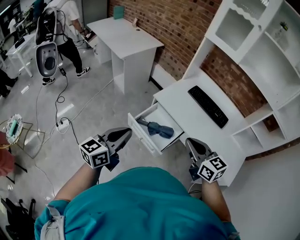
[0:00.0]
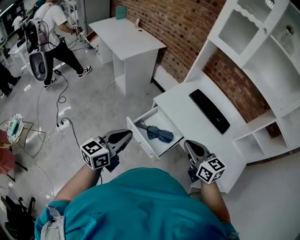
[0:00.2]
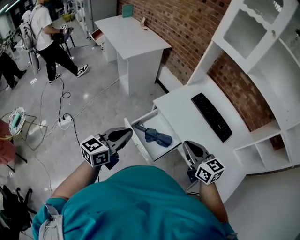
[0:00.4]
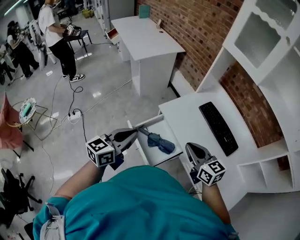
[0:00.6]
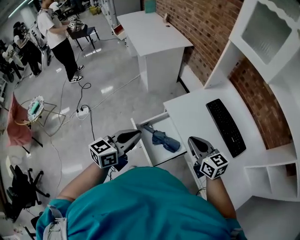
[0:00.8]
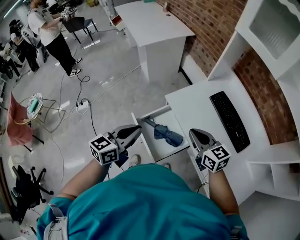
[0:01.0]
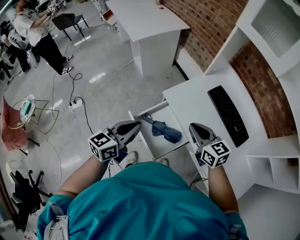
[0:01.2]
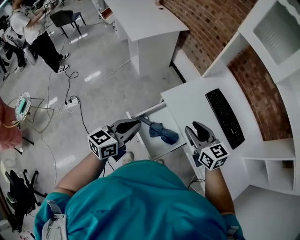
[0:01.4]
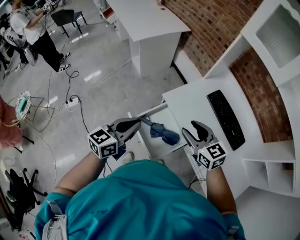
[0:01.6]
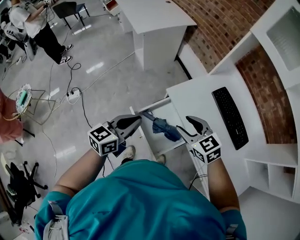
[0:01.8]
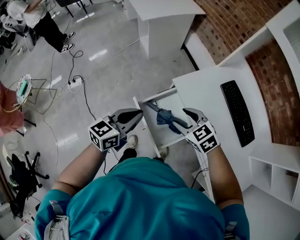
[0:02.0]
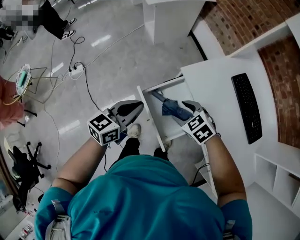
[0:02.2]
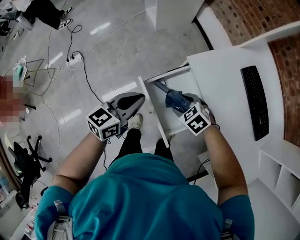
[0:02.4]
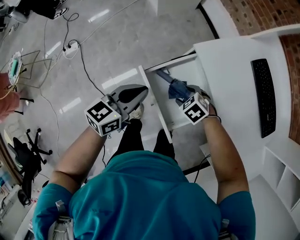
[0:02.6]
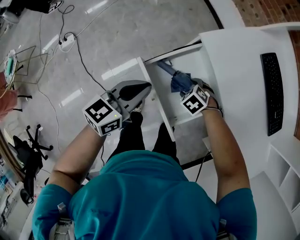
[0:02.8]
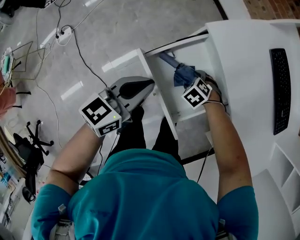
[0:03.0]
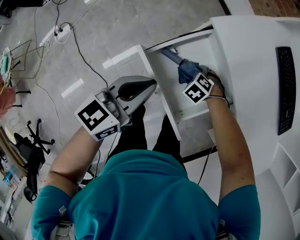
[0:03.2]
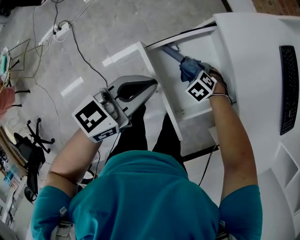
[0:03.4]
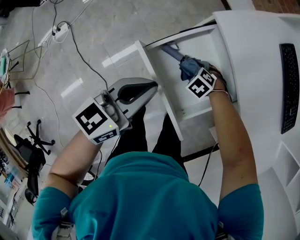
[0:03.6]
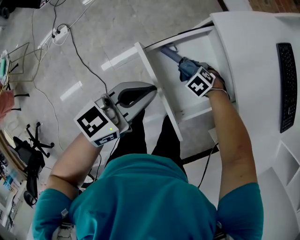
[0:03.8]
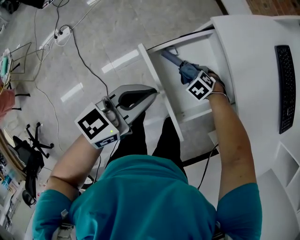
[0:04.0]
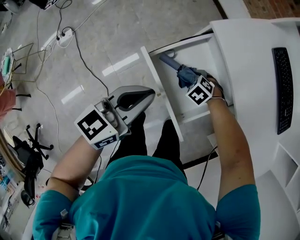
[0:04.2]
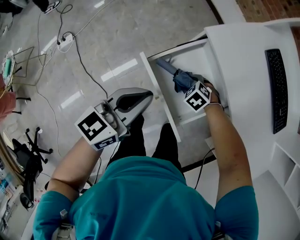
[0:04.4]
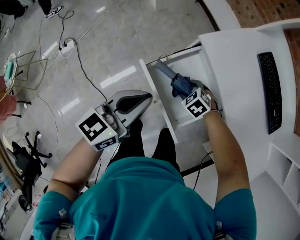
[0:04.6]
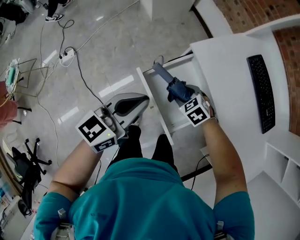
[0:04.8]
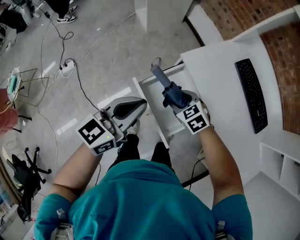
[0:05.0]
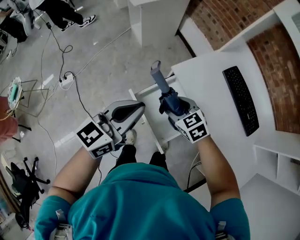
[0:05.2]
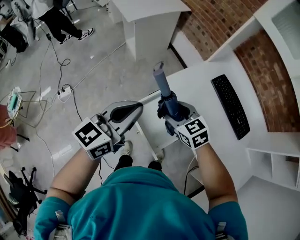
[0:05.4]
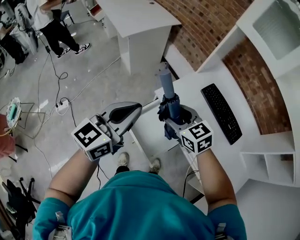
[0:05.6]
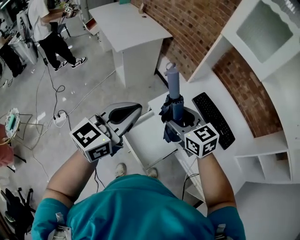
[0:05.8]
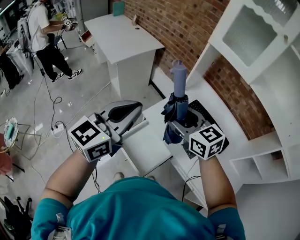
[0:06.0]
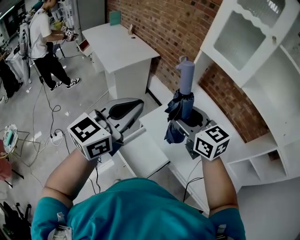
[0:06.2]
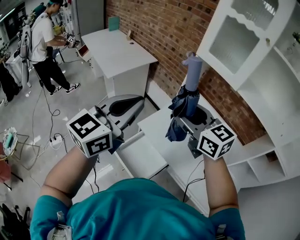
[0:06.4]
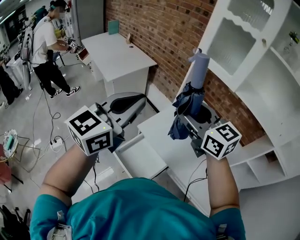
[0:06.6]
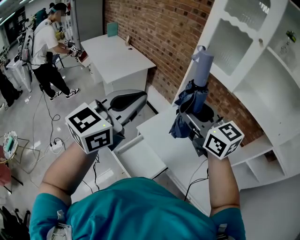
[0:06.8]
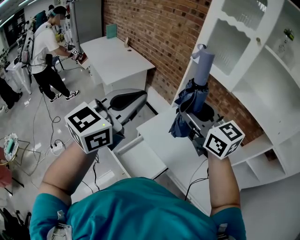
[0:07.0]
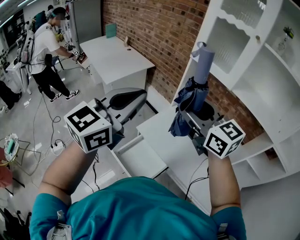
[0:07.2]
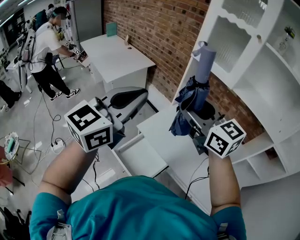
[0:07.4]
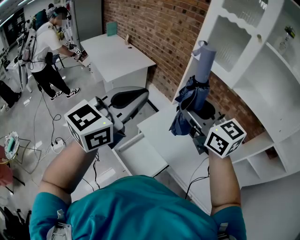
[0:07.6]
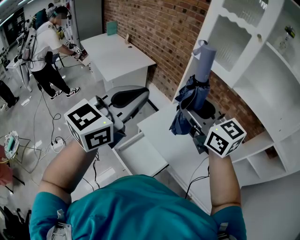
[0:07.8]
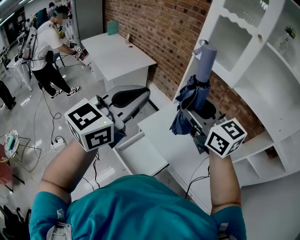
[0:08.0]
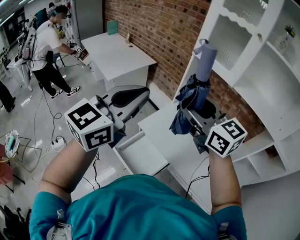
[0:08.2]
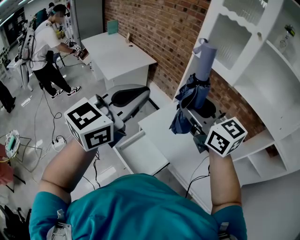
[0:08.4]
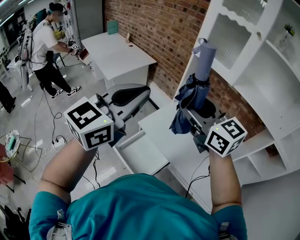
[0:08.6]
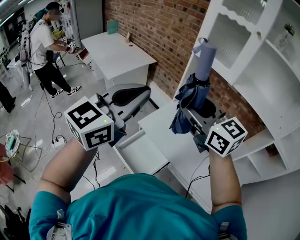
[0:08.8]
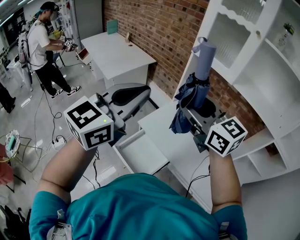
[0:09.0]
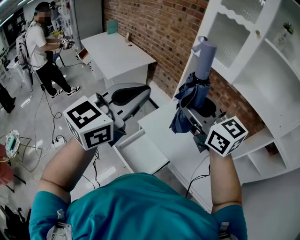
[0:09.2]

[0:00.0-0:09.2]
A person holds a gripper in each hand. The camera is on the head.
0:00.0 to 0:01.6: The left gripper heads forward, to the right and downward, covering about 20 cm; the right gripper shifts about 20 cm forward, changes its angle by about 20 degrees, and opens its fingers.
0:01.6 to 0:03.0: The right gripper heads downward, covering about 40 cm, and angles its fingers downward, by roughly 60 degrees, while the left gripper moves downward, about 20 cm.
0:03.0 to 0:04.6: The two grippers go some 5 cm upward.
0:04.6 to 0:06.2: The grippers both shift upward by some 50 cm. The left gripper turns by some 30 degrees; the right gripper points its fingers about 60 degrees further upward.
0:06.2 to 0:07.6: The two grippers go about 10 cm upward.
0:07.6 to 0:09.2: The two grippers keep their place.

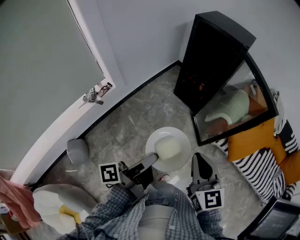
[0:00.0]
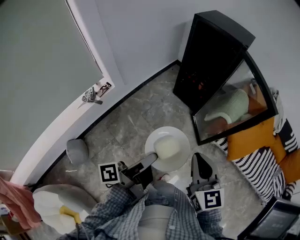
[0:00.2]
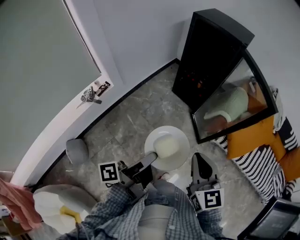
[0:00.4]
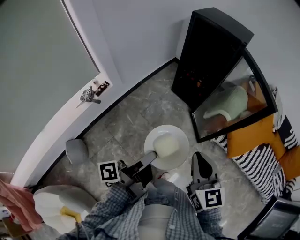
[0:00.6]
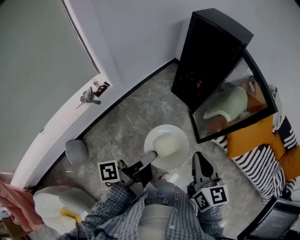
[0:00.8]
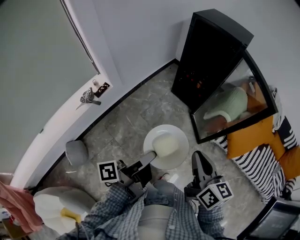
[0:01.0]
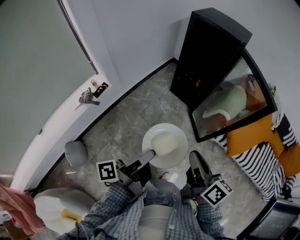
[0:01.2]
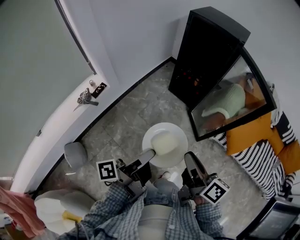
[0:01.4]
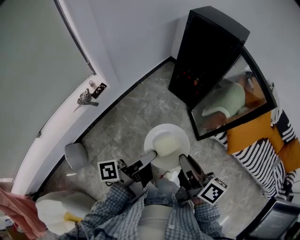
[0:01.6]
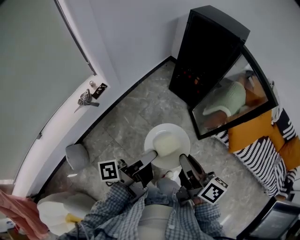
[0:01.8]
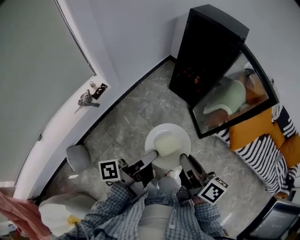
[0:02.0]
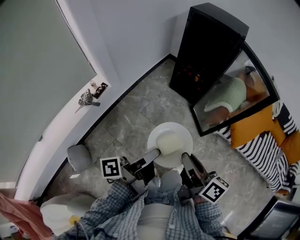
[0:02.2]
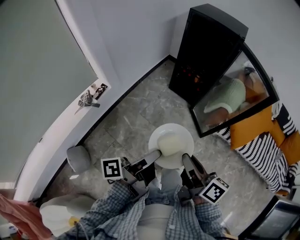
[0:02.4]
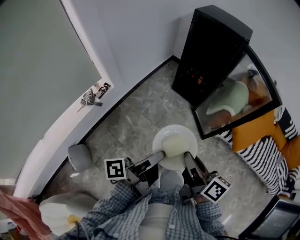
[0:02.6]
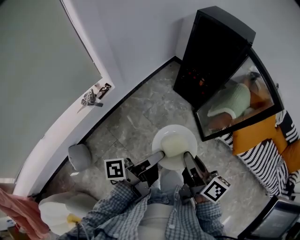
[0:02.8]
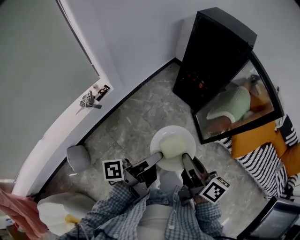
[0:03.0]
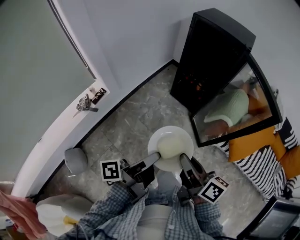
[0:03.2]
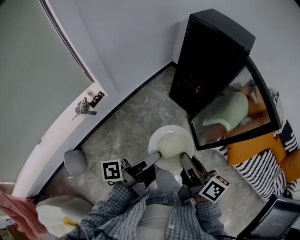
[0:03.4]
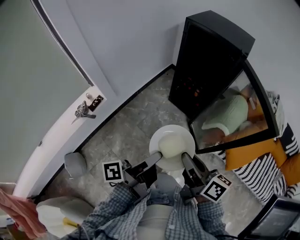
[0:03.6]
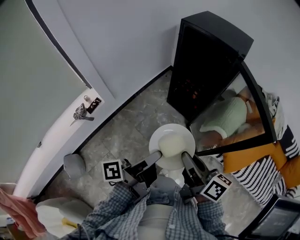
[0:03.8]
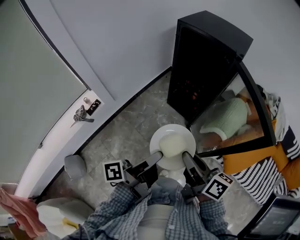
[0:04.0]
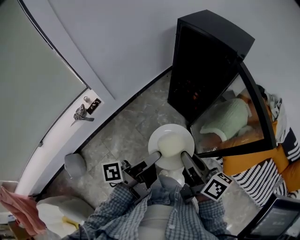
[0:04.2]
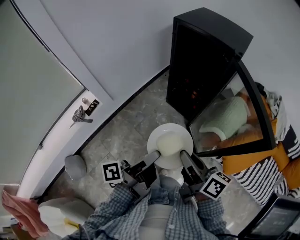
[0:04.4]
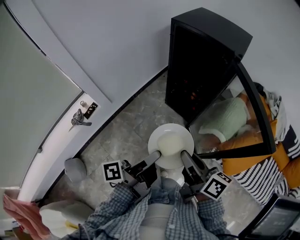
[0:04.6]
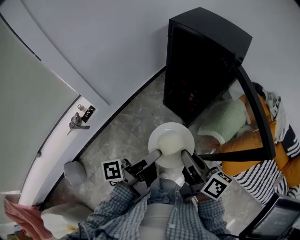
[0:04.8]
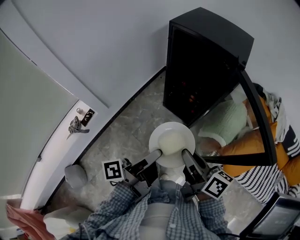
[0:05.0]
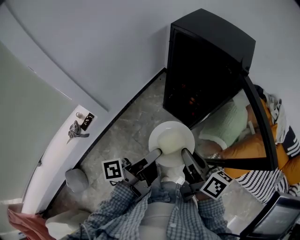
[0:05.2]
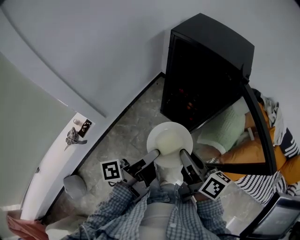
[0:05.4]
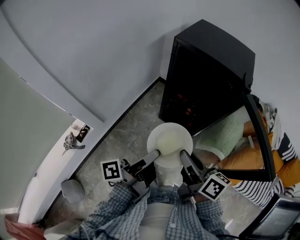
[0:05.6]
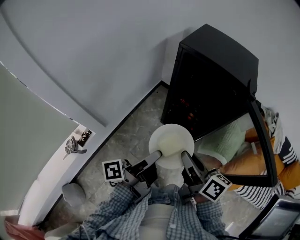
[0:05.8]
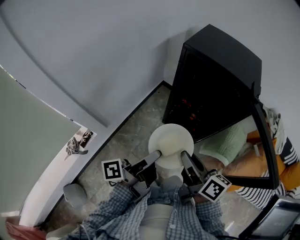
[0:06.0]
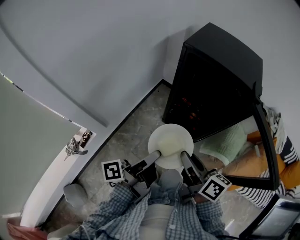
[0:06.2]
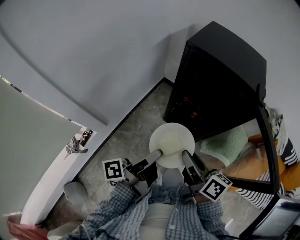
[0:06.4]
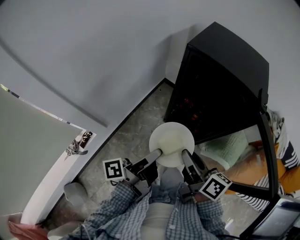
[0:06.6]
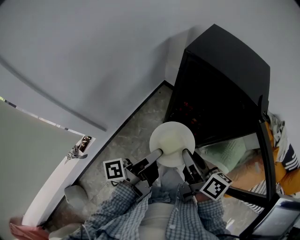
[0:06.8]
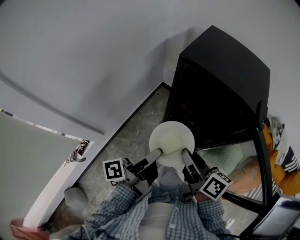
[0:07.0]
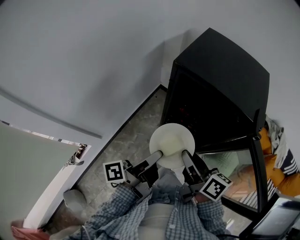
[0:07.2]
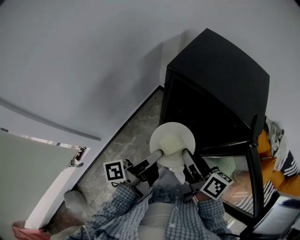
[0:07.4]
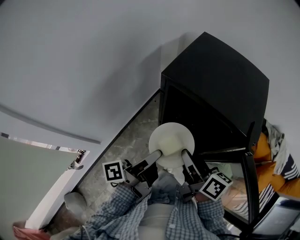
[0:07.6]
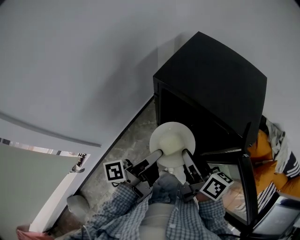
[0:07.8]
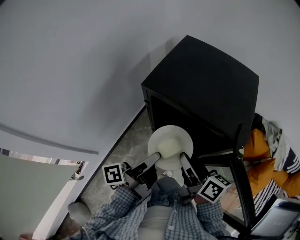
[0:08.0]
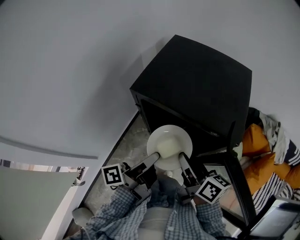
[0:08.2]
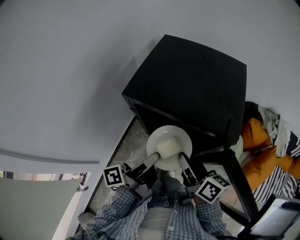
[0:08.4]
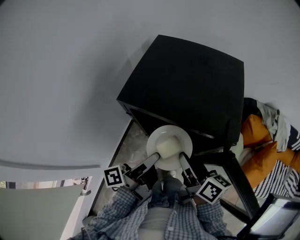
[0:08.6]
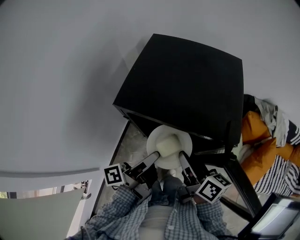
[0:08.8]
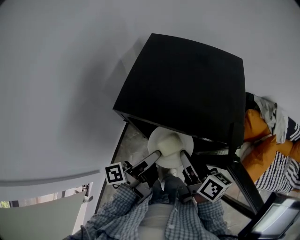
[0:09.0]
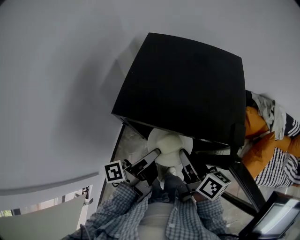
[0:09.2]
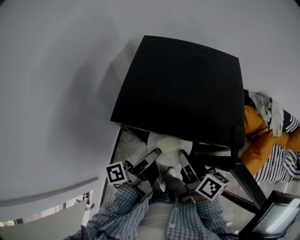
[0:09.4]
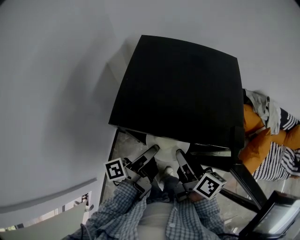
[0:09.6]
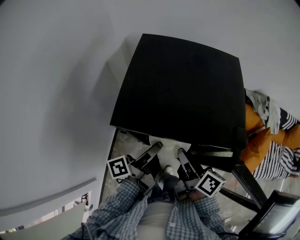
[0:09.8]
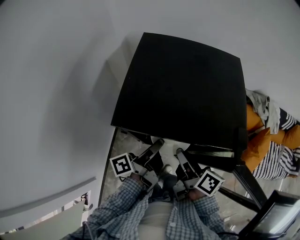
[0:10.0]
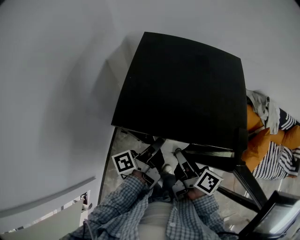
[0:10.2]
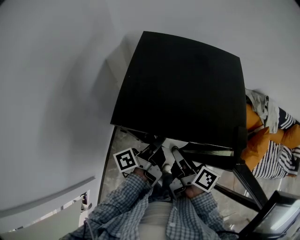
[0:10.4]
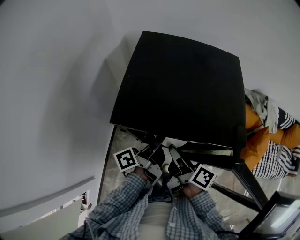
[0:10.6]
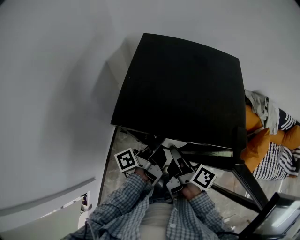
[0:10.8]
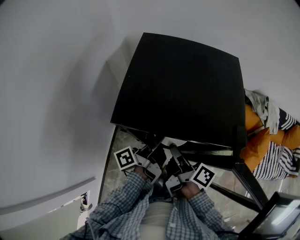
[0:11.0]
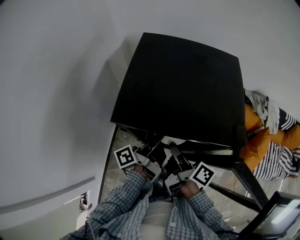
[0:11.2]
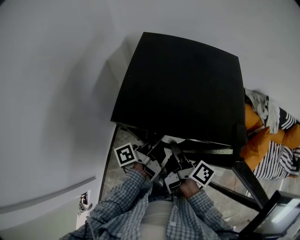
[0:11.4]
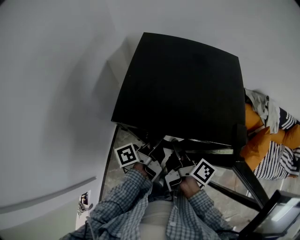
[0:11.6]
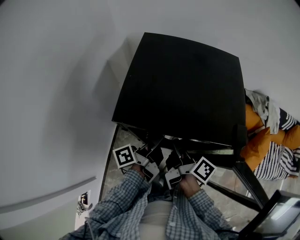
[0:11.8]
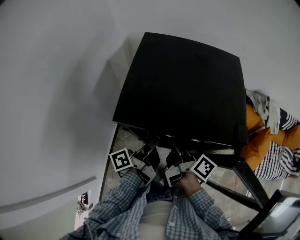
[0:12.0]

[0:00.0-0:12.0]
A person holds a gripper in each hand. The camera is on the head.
0:00.0 to 0:01.6: The right gripper ends up approximately 5 cm from where it was, and rotates around the line of its fingers by some 60 degrees, clockwise from behind.
0:03.0 to 0:04.4: The right gripper shifts by some 20 cm.
0:04.4 to 0:06.0: The right gripper shifts by roughly 20 cm.
0:06.0 to 0:07.6: The right gripper changes place by approximately 20 cm.
0:07.6 to 0:09.0: The right gripper shifts by about 10 cm.
0:09.0 to 0:10.4: The right gripper shifts by about 5 cm.

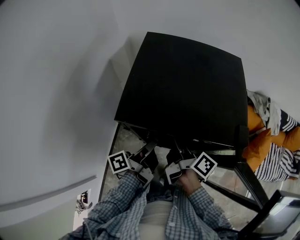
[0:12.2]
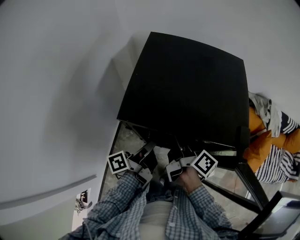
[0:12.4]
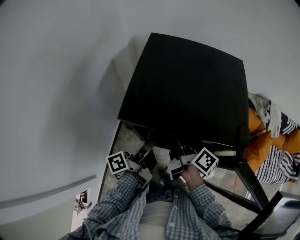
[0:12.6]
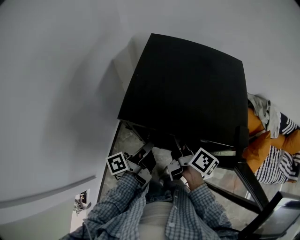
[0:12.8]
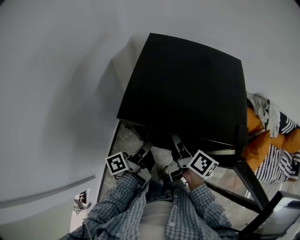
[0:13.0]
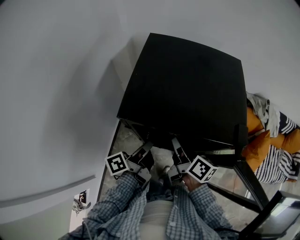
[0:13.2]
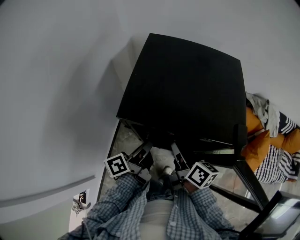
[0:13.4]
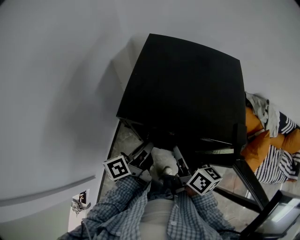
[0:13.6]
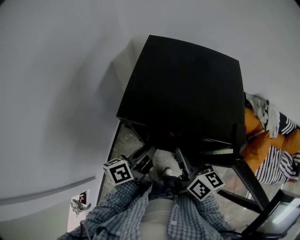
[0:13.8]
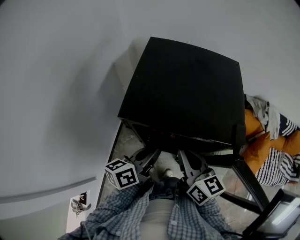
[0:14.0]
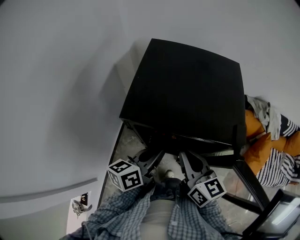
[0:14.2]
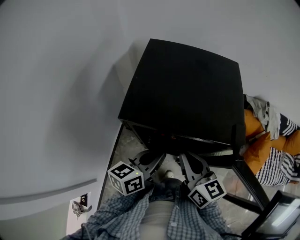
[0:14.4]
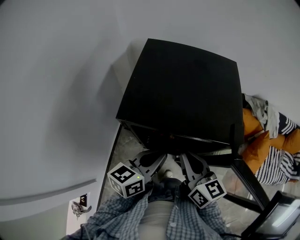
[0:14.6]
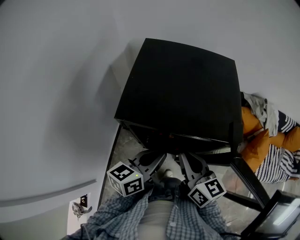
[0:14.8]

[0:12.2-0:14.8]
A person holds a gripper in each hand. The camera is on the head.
0:12.2 to 0:13.4: The right gripper swivels about 30 degrees.
0:13.4 to 0:14.8: The right gripper is displaced upward by some 5 cm, and turns by about 30 degrees.
